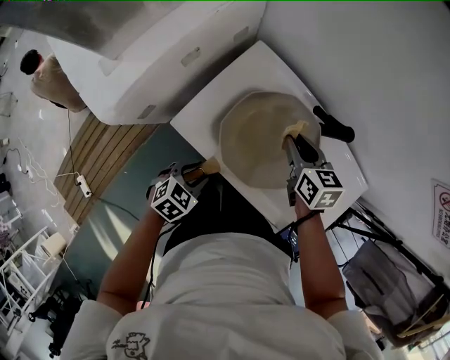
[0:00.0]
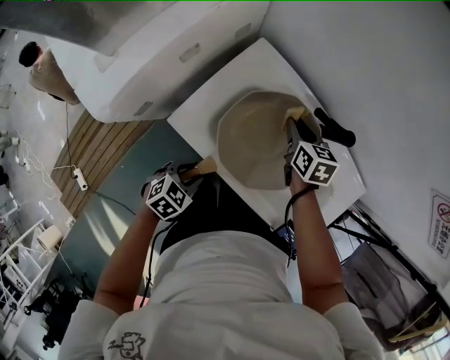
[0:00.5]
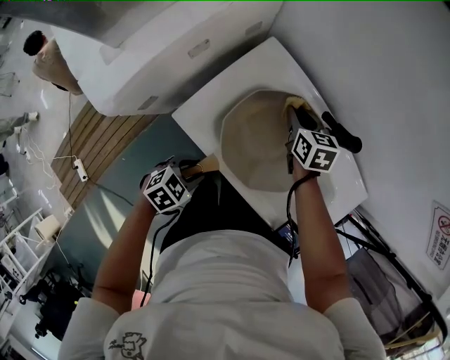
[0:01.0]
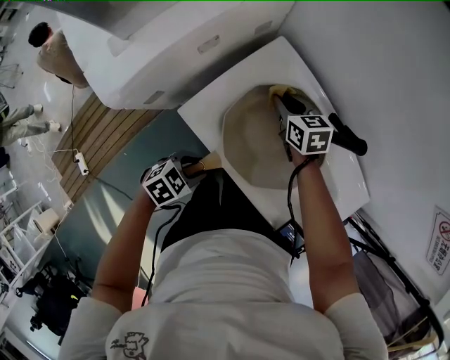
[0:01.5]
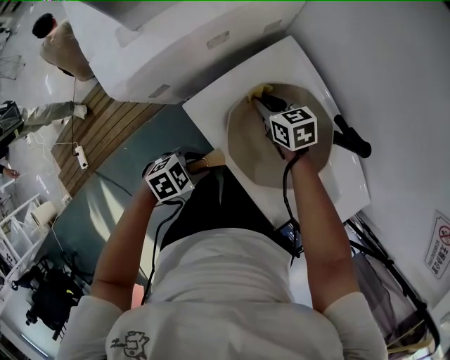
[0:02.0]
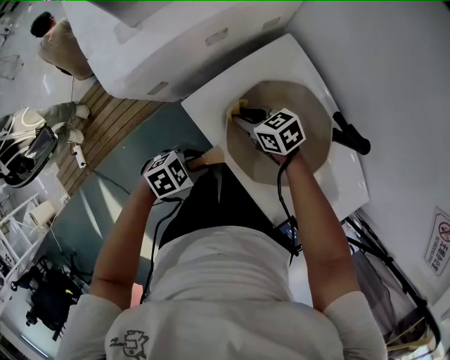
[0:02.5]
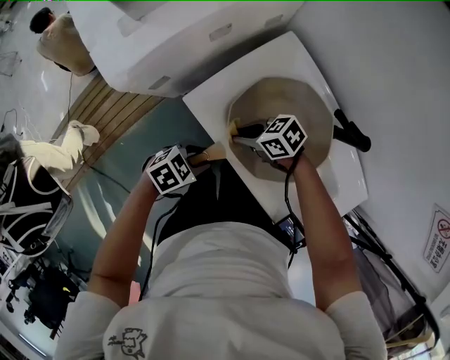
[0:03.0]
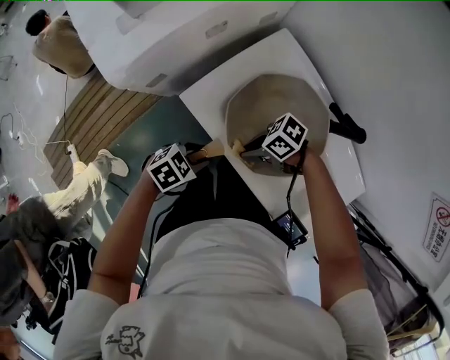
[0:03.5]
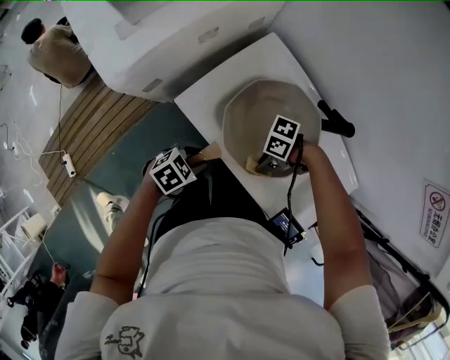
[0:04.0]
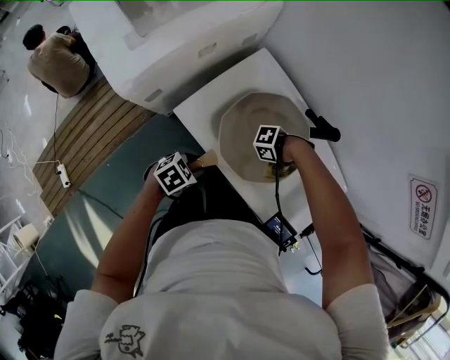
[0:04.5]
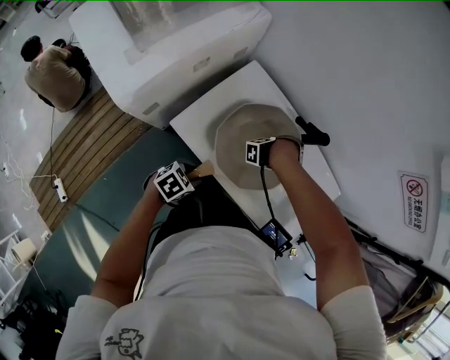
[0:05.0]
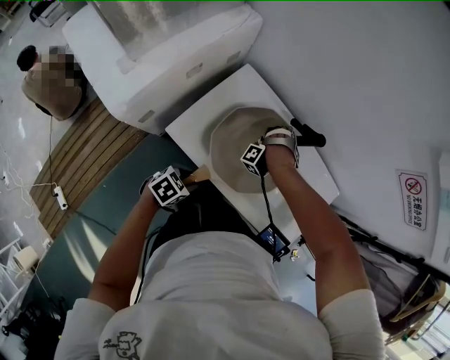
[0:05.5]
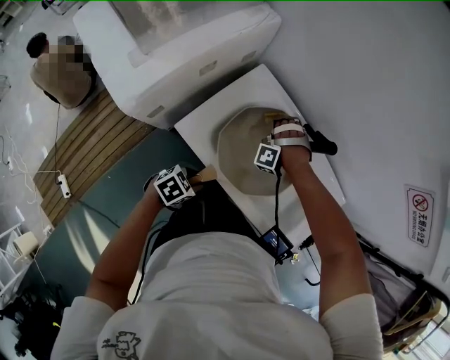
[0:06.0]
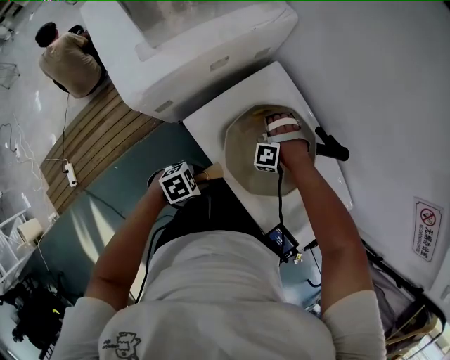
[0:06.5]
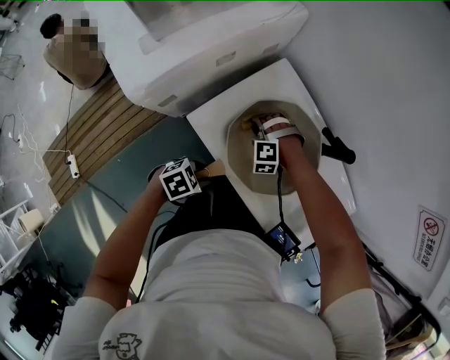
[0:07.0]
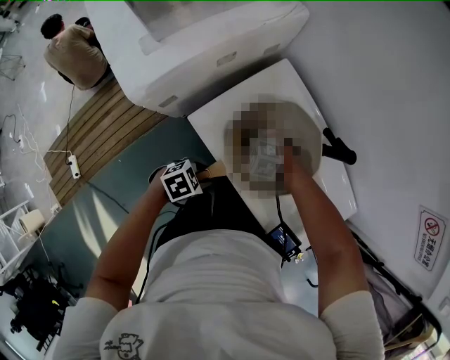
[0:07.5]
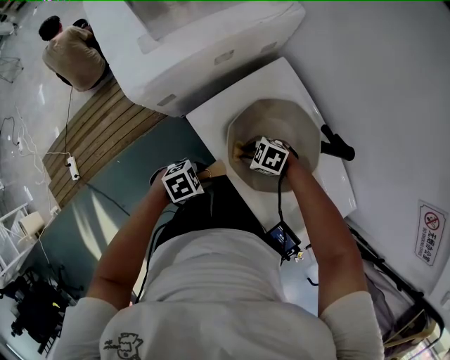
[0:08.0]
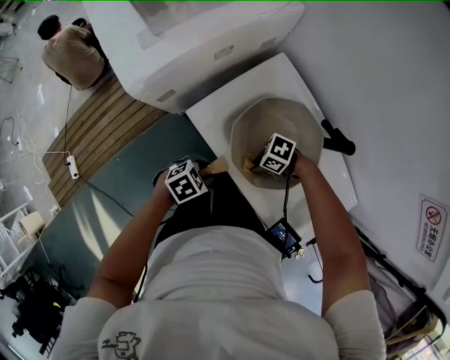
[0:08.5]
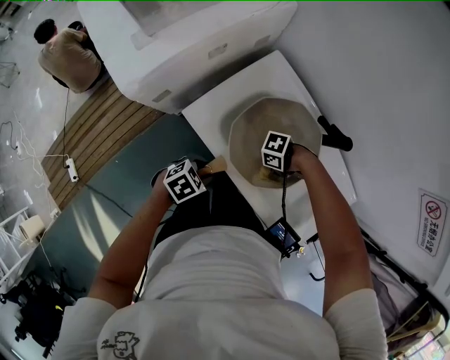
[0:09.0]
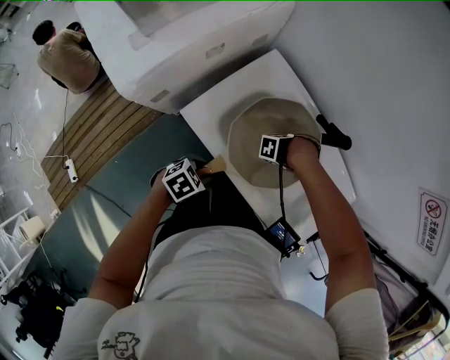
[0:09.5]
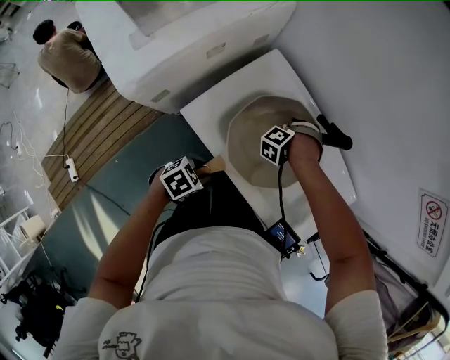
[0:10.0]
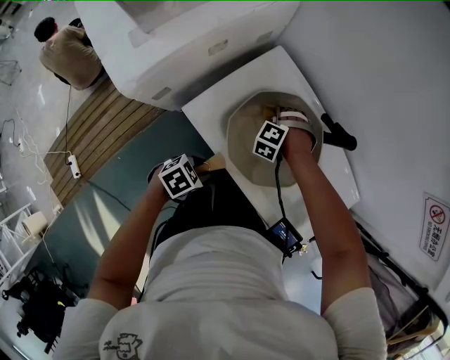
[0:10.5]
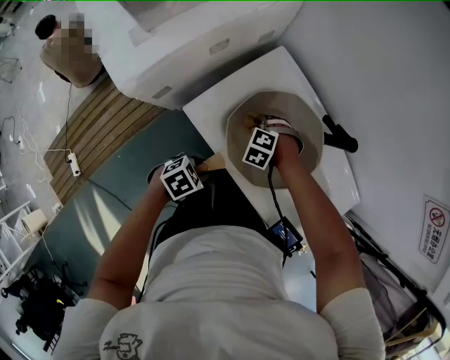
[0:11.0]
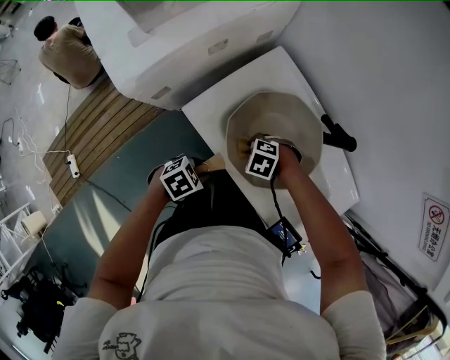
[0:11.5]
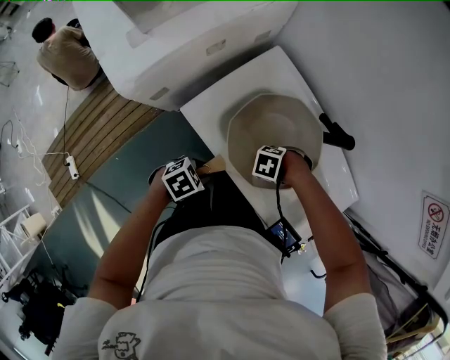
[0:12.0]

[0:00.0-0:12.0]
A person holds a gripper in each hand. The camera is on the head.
0.0 to 2.0 s: The right gripper moves roughly 20 cm, and rotates approximately 30 degrees.
2.0 to 4.0 s: The right gripper moves about 25 cm, and changes its angle by some 70 degrees.
4.0 to 6.0 s: The right gripper ends up some 25 cm from where it was, and swivels approximately 120 degrees.
6.0 to 8.0 s: The right gripper moves about 20 cm, and swivels about 90 degrees.
8.0 to 10.0 s: The right gripper moves some 20 cm, and swivels some 60 degrees.
10.0 to 12.0 s: The right gripper shifts by some 20 cm, and changes its angle by approximately 50 degrees.

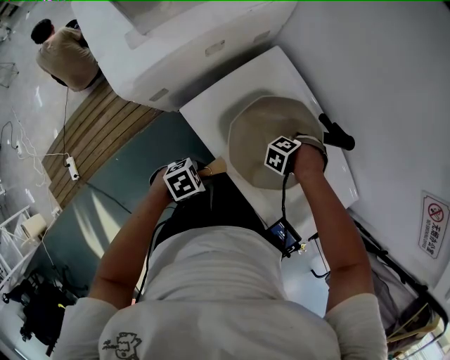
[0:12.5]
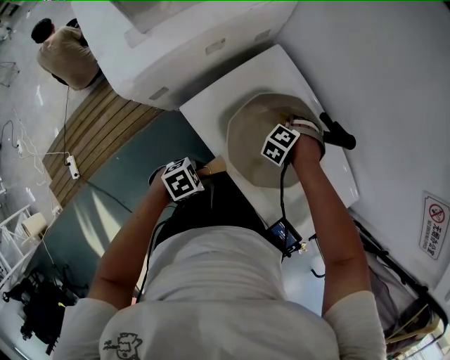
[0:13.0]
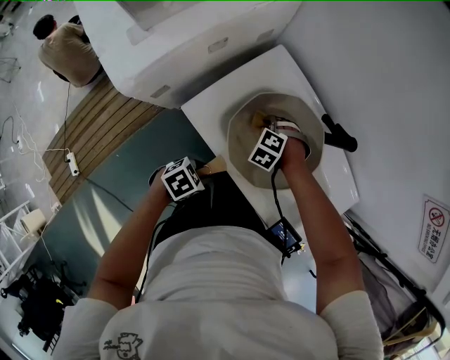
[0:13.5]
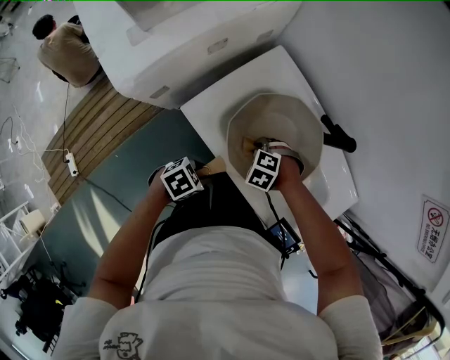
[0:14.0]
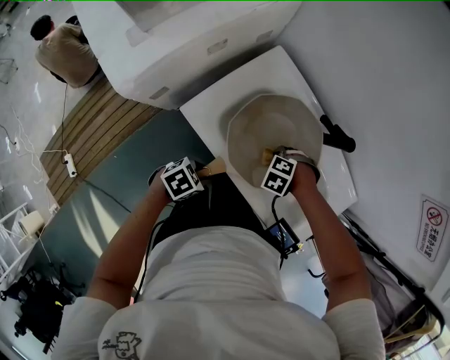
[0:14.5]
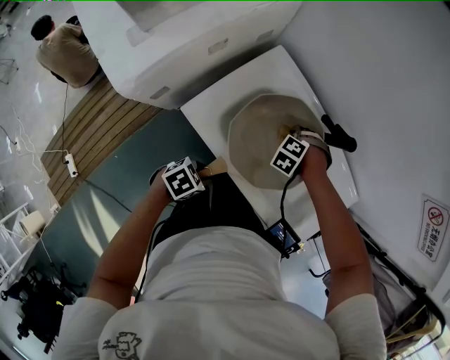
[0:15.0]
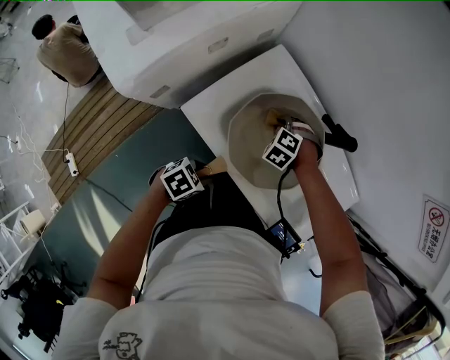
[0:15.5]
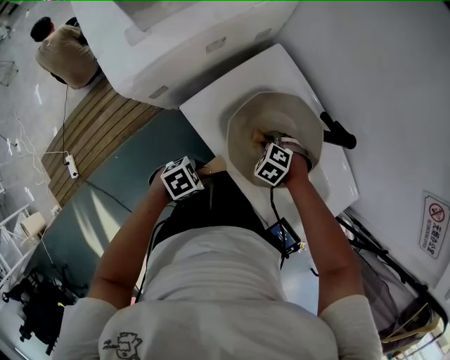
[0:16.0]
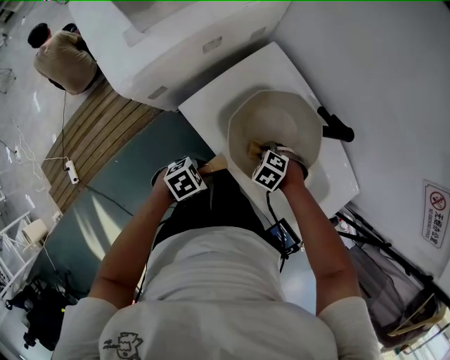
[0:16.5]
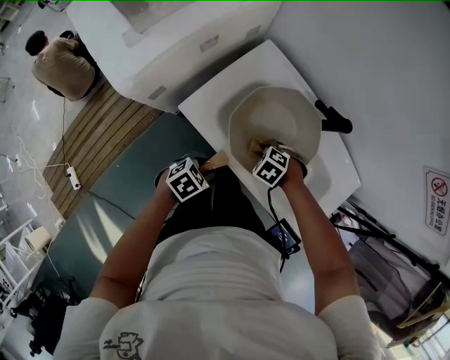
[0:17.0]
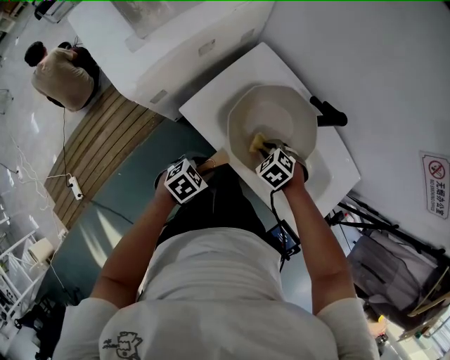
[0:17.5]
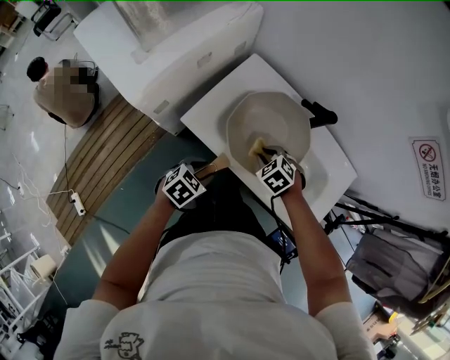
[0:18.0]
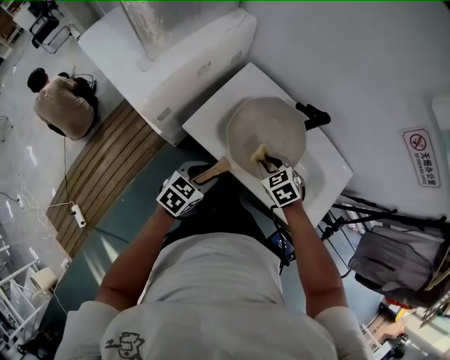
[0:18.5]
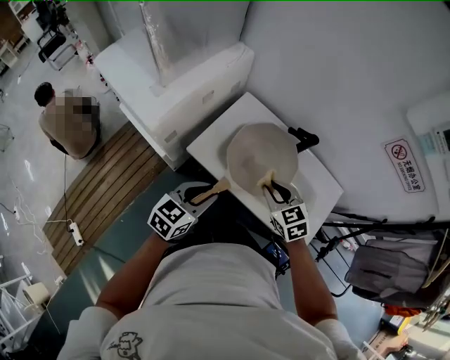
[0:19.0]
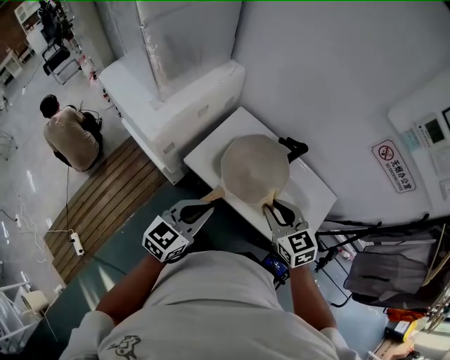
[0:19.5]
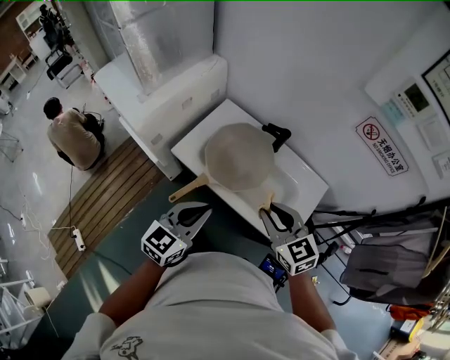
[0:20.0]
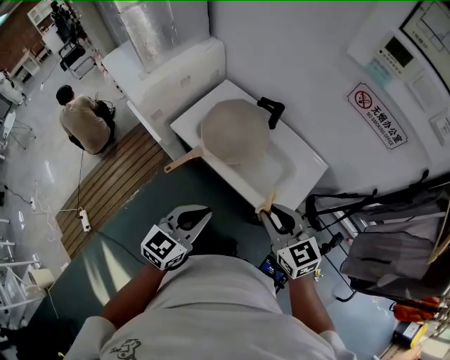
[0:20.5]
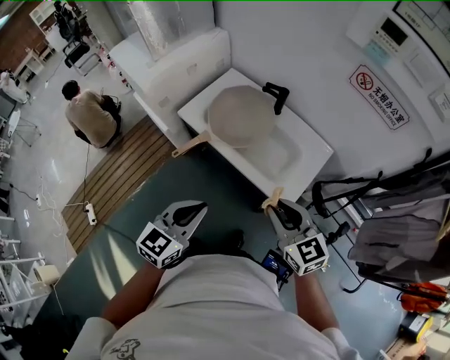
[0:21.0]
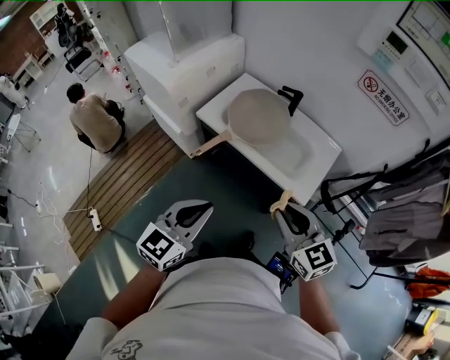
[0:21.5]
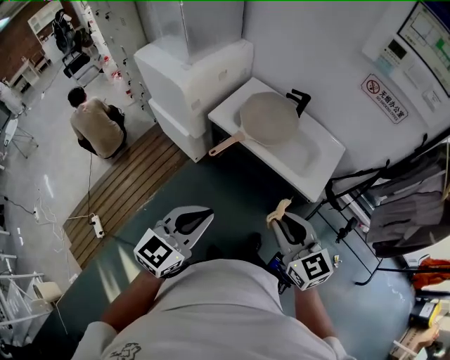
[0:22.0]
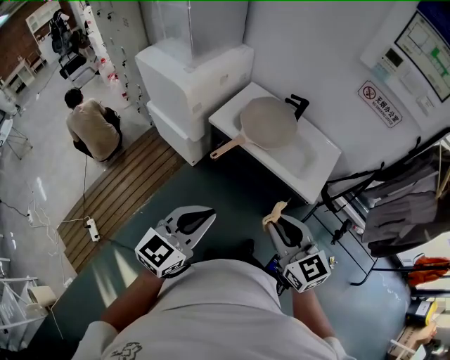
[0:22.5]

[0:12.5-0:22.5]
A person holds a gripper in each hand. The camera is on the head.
12.5 to 14.5 s: The right gripper turns by about 20 degrees.
16.5 to 18.5 s: Both grippers travel together upward, approximately 15 cm. The right gripper changes its angle by roughly 40 degrees. The left gripper swivels some 30 degrees.
18.5 to 20.5 s: The two grippers go about 35 cm upward, backward and to the right. The right gripper tips its fingers upward by about 40 degrees, while the left gripper changes its angle by some 30 degrees, and closes.
20.5 to 22.5 s: The right gripper goes some 30 cm backward and to the left. The left gripper travels to the left, backward and upward by approximately 30 cm.

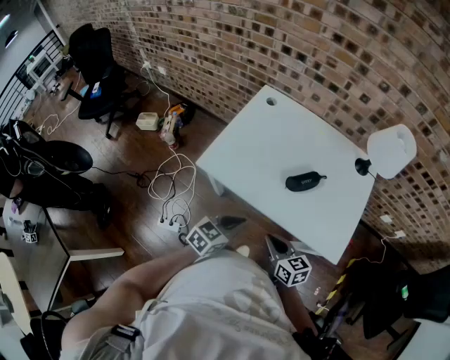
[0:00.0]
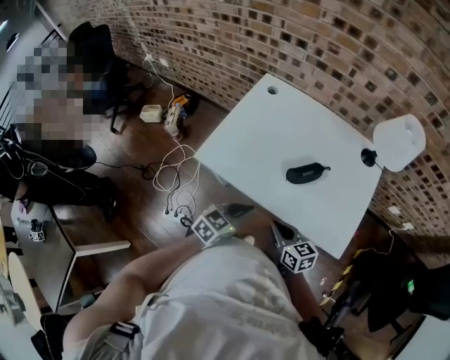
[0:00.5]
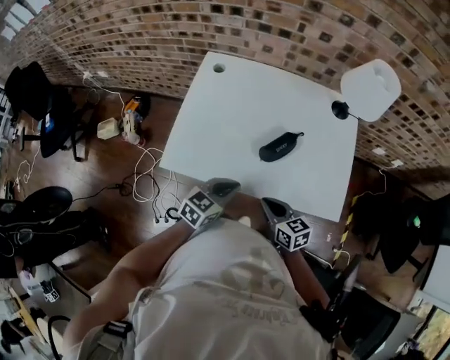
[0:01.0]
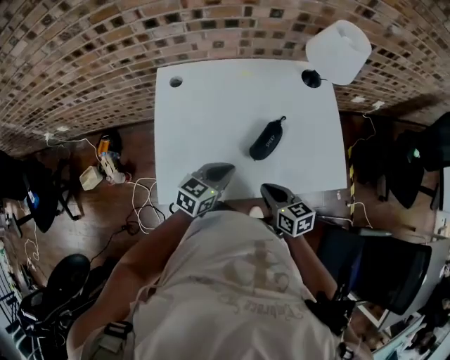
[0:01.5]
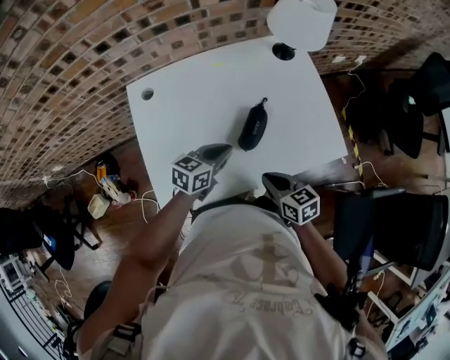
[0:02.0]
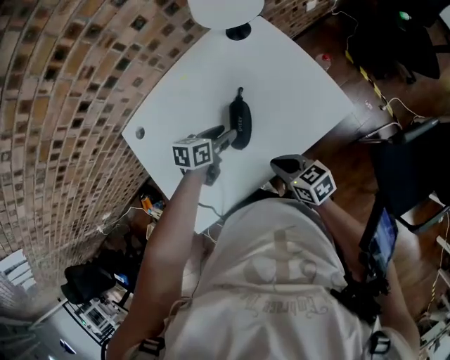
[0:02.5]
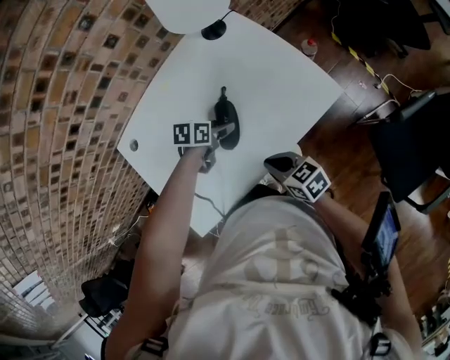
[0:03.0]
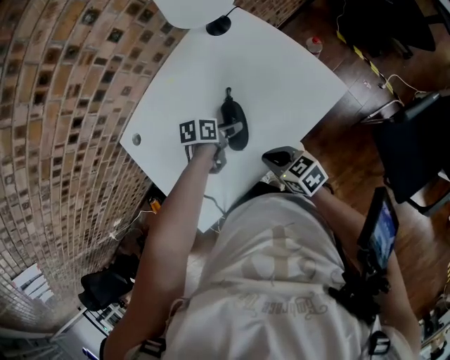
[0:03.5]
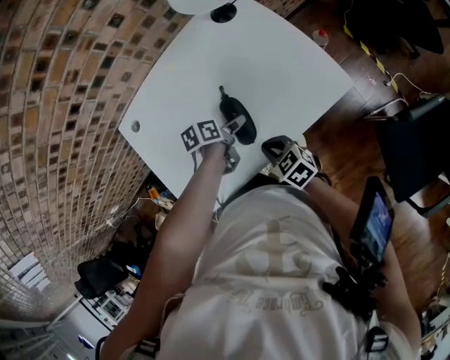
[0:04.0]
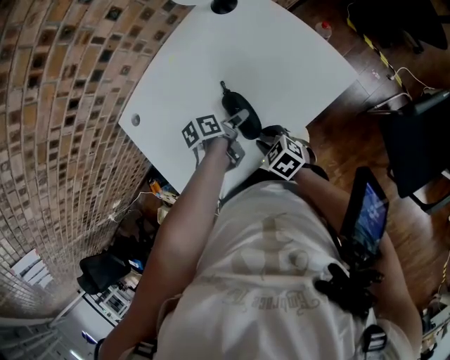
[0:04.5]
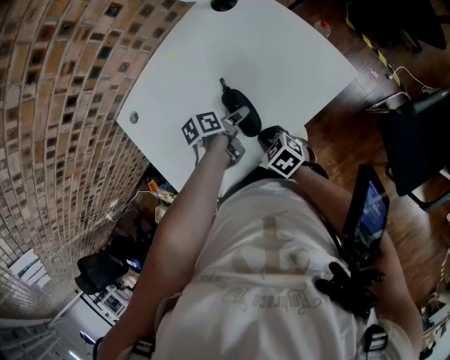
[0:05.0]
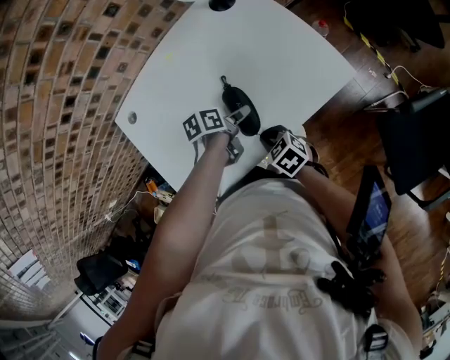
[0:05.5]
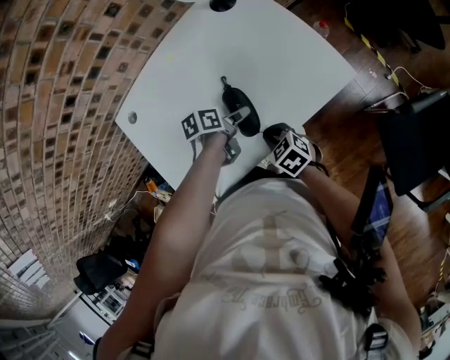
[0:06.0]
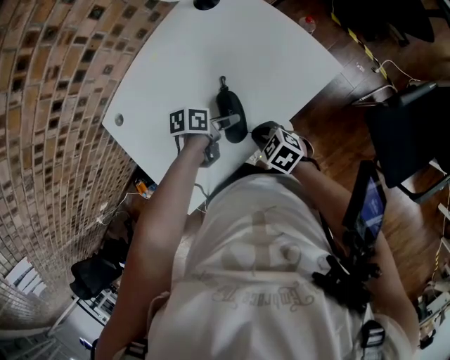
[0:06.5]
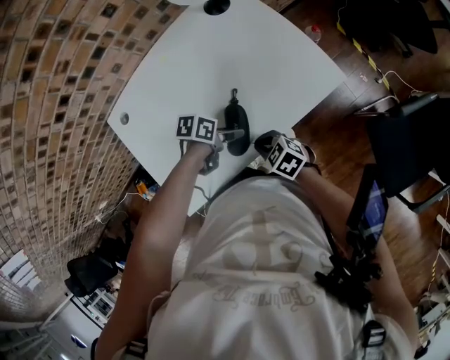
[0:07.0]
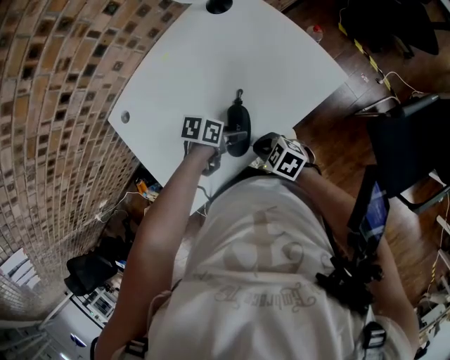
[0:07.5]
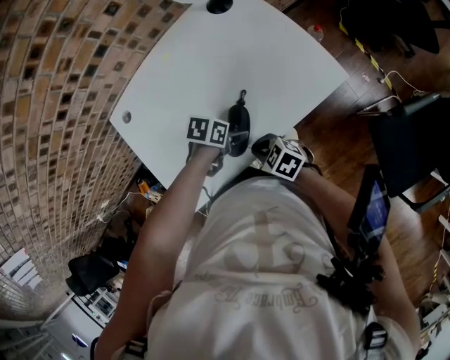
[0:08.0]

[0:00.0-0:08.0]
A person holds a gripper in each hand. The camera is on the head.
0.0 to 2.0 s: The right gripper ends up approximately 15 cm from where it was, and turns by some 40 degrees.
2.0 to 4.0 s: The right gripper moves downward, approximately 5 cm.
4.0 to 6.0 s: The right gripper opens and closes again.
6.0 to 8.0 s: The right gripper changes place by roughly 5 cm.
